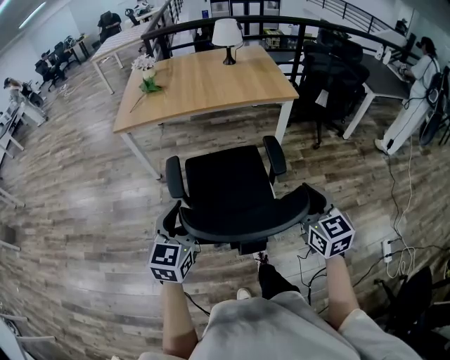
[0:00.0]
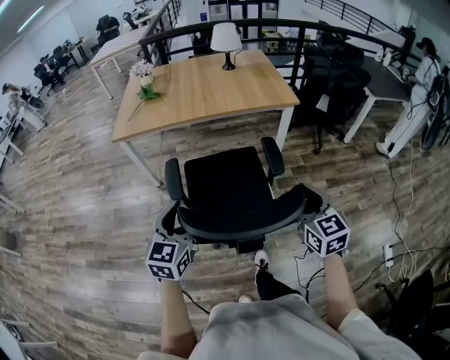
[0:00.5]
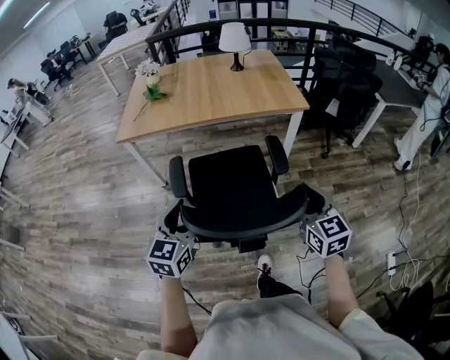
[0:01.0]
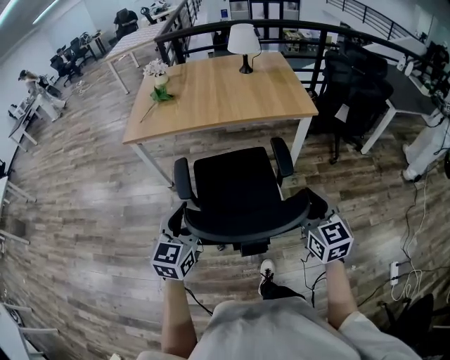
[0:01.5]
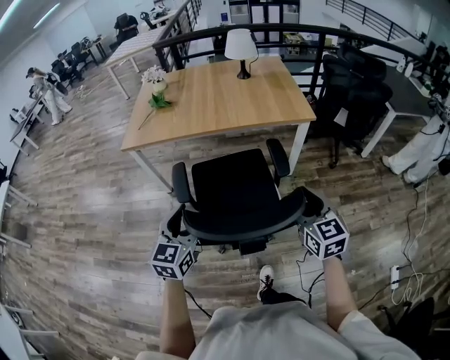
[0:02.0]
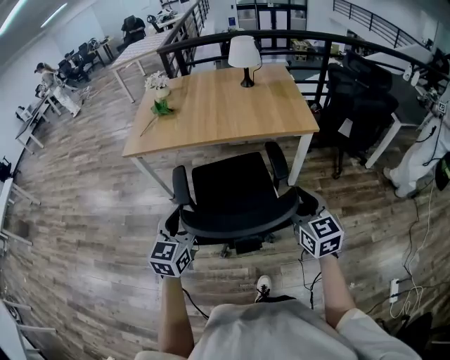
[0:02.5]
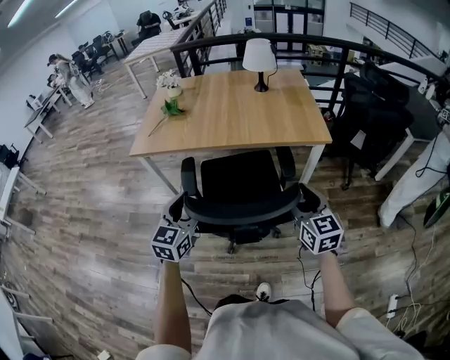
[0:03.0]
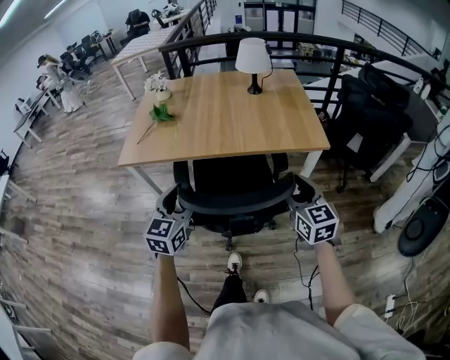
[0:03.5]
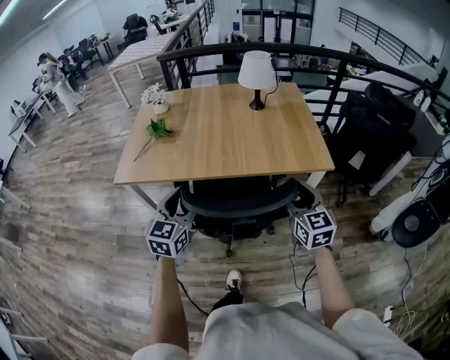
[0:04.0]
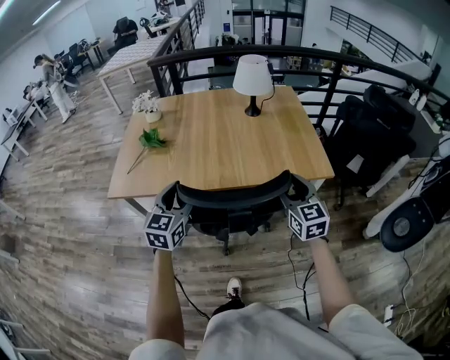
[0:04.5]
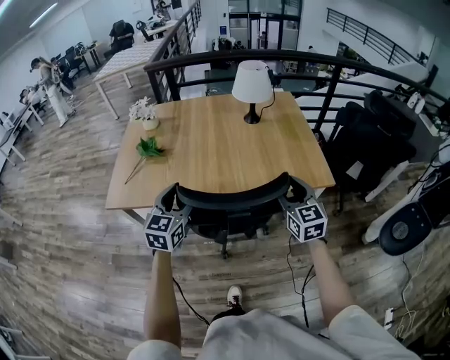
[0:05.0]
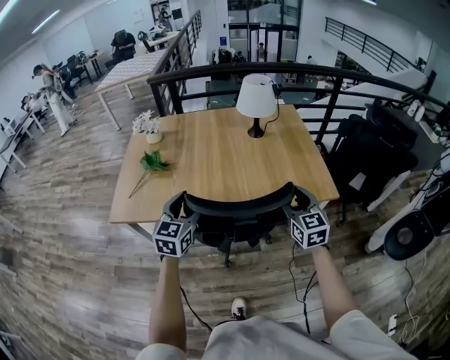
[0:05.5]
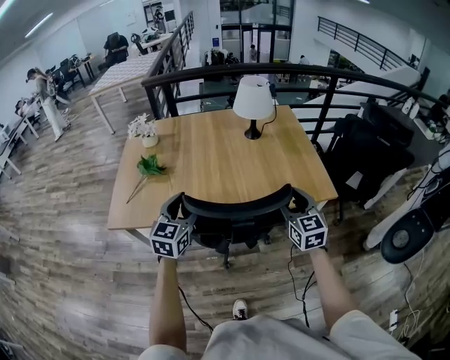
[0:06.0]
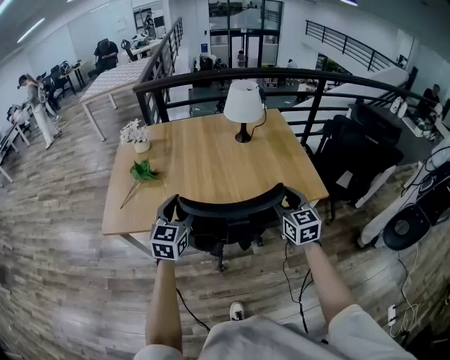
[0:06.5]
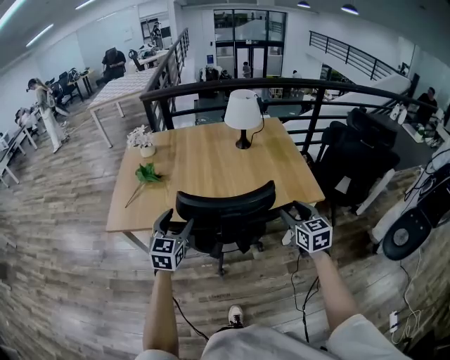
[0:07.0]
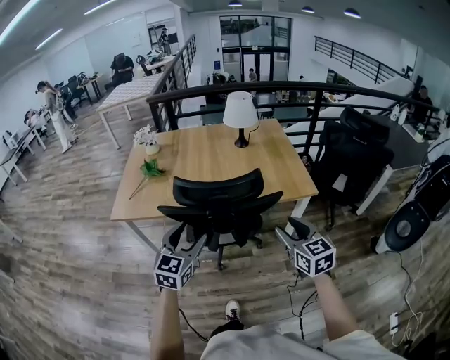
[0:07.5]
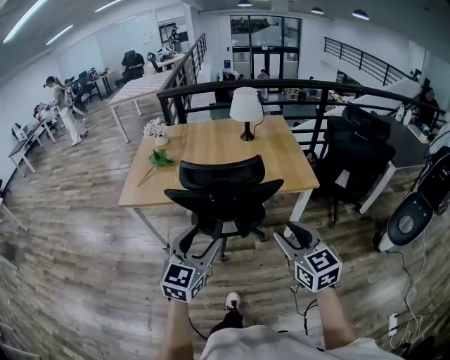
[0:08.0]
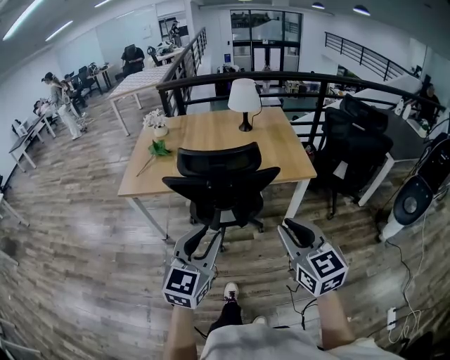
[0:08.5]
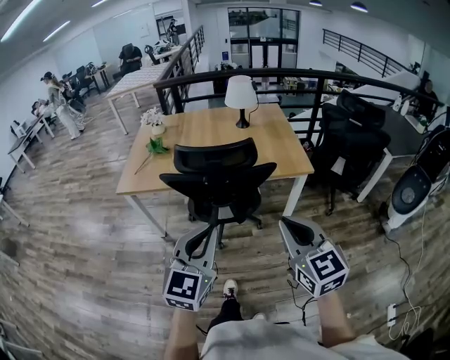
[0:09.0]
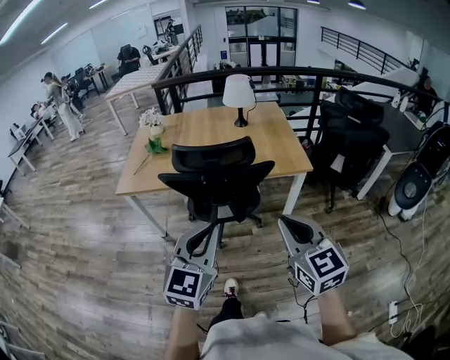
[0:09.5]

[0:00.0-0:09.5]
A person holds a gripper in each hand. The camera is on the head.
0:00.0 to 0:02.0: Both grippers move forward, approximately 15 cm.
0:02.0 to 0:04.0: The grippers both shift forward by some 30 cm.
0:04.0 to 0:05.5: The grippers both shift forward by approximately 15 cm.
0:05.5 to 0:07.5: The grippers both shift backward by roughly 20 cm.
0:07.5 to 0:09.5: The right gripper moves backward and upward, approximately 20 cm, and closes its fingers. The left gripper moves backward, to the right and upward, roughly 25 cm, and closes its fingers.

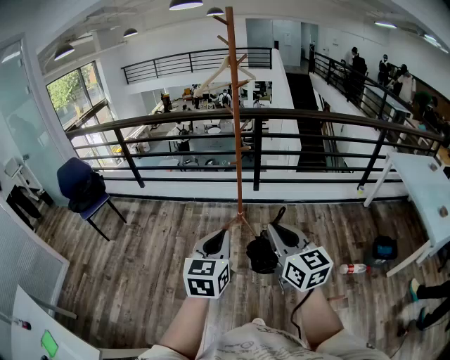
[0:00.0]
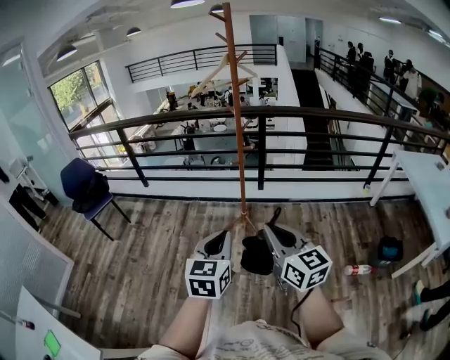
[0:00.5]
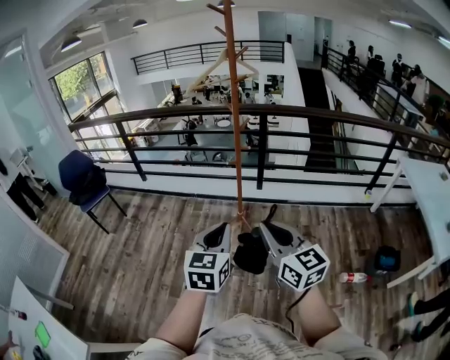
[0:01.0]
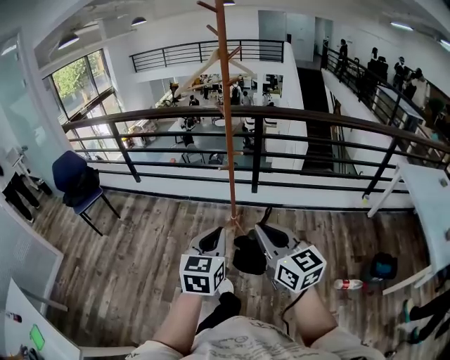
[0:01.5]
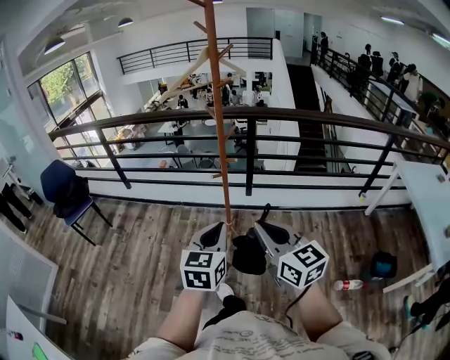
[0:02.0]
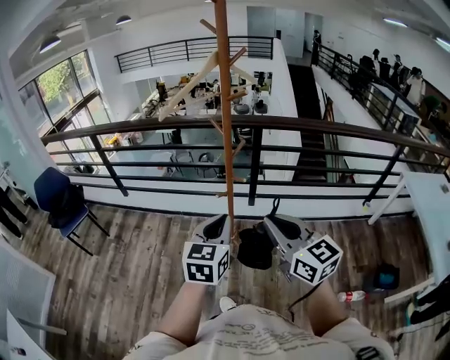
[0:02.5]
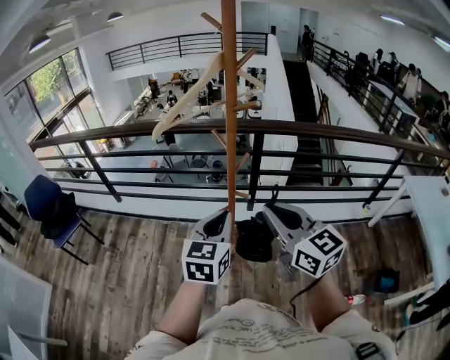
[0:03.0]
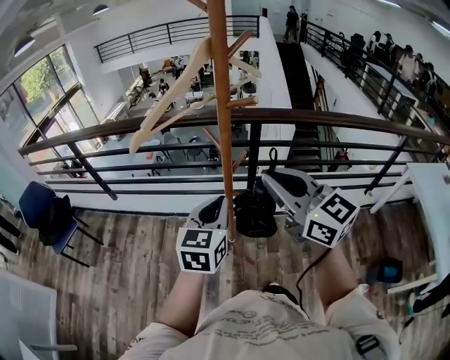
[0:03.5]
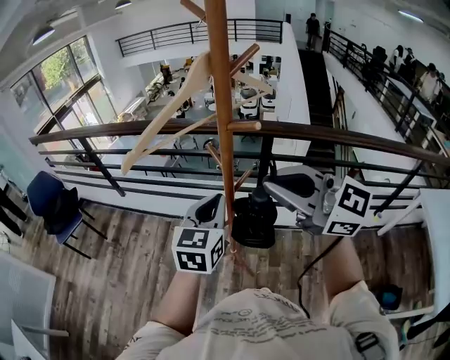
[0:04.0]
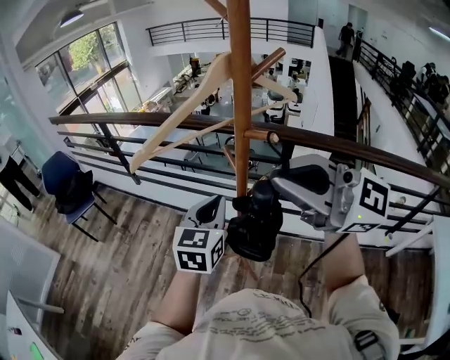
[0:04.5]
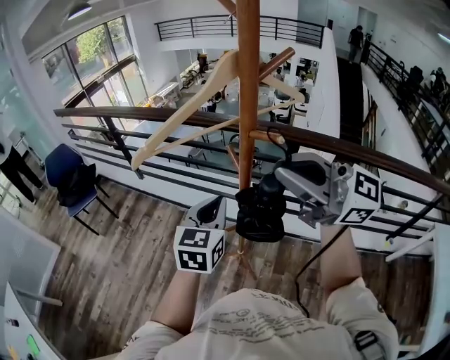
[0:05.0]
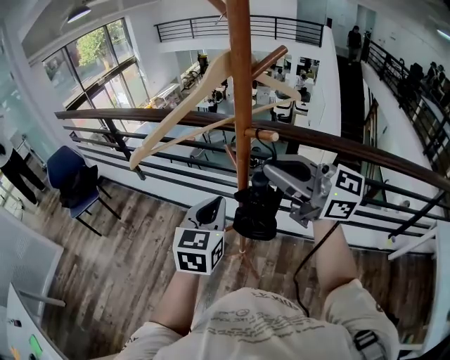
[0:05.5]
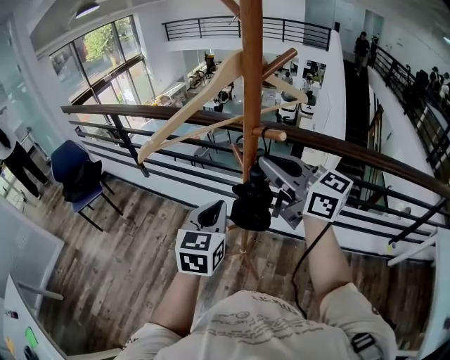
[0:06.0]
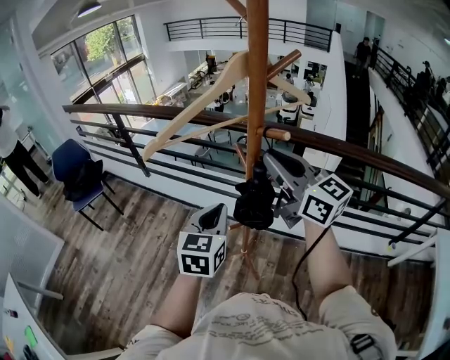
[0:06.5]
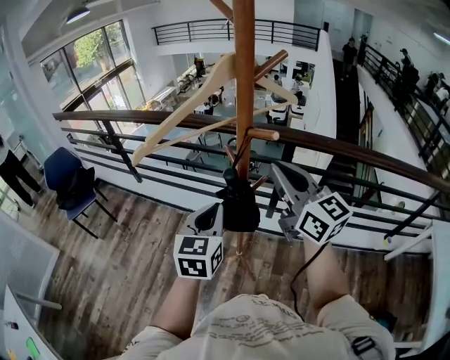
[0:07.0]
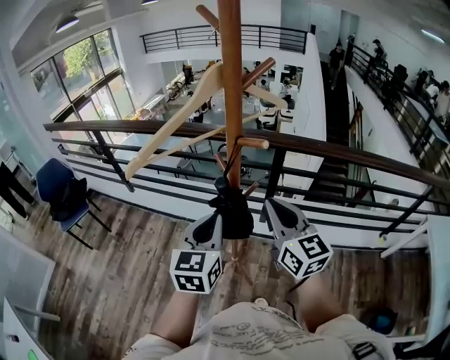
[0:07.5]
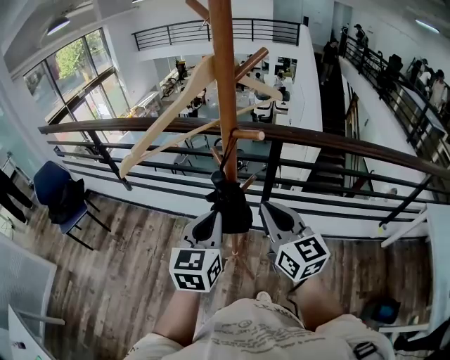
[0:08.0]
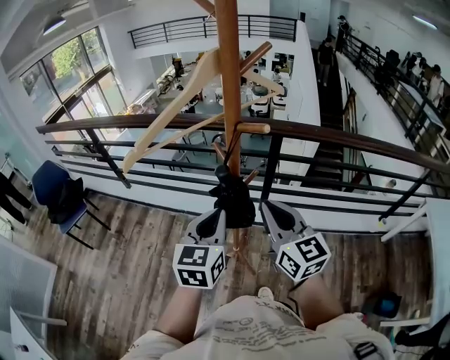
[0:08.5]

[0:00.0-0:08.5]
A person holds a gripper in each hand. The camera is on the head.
0:00.0 to 0:02.0: Both grippers travel together forward and to the right, approximately 25 cm.
0:02.0 to 0:04.0: Both grippers move forward, roughly 40 cm. The right gripper changes its angle by some 40 degrees.
0:04.0 to 0:06.5: The left gripper ends up some 5 cm from where it was. The right gripper is displaced forward by some 10 cm.
0:06.5 to 0:08.5: The right gripper goes roughly 15 cm downward and backward, and turns by approximately 30 degrees.

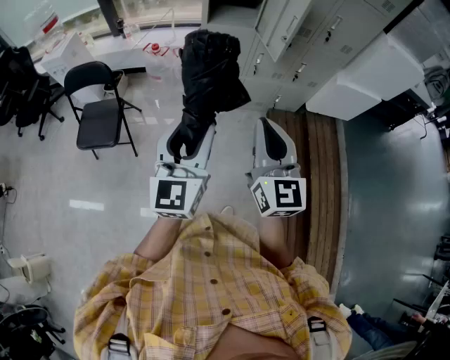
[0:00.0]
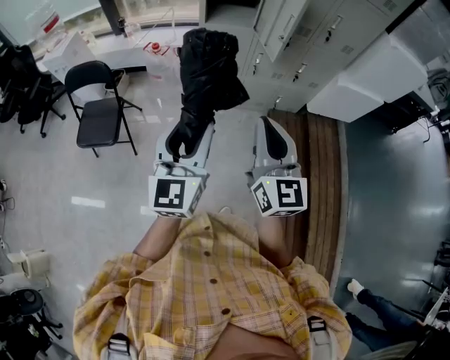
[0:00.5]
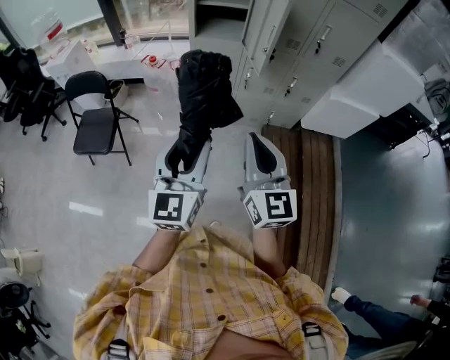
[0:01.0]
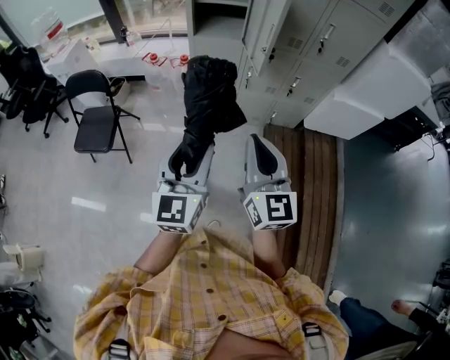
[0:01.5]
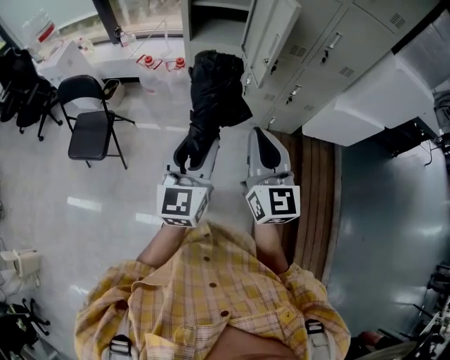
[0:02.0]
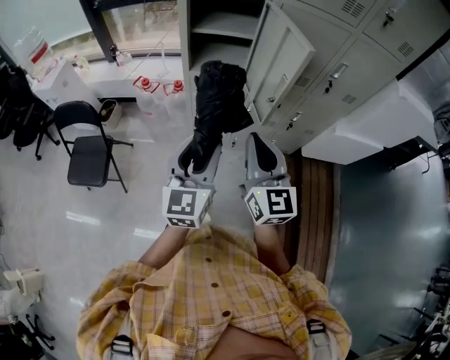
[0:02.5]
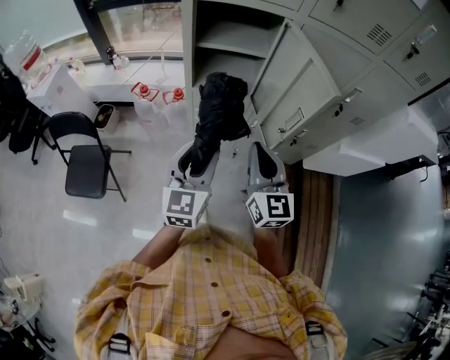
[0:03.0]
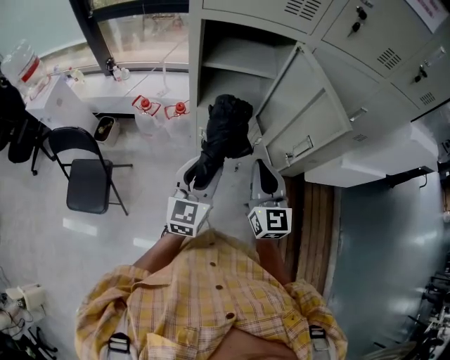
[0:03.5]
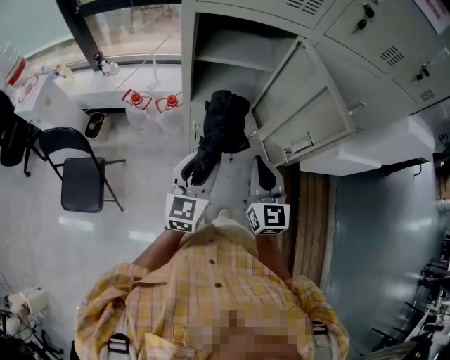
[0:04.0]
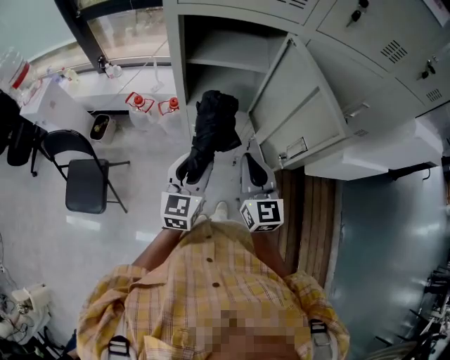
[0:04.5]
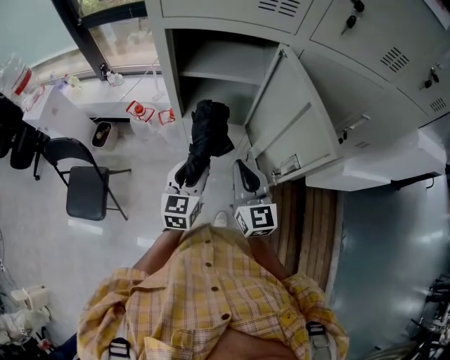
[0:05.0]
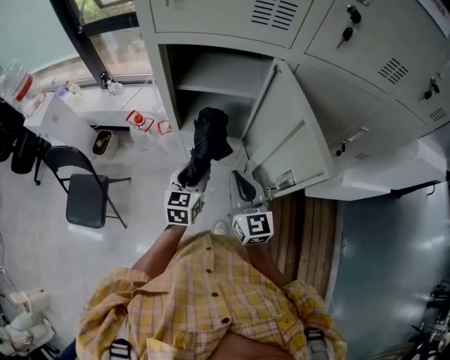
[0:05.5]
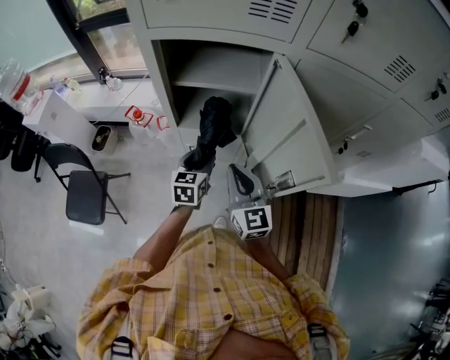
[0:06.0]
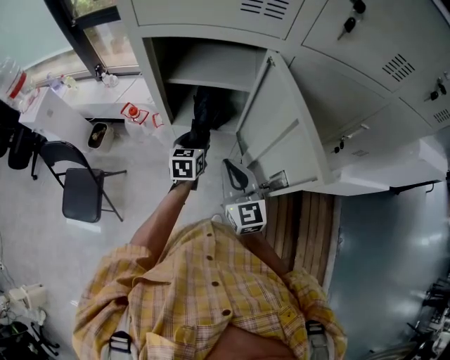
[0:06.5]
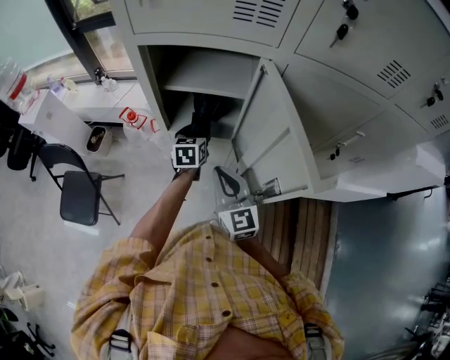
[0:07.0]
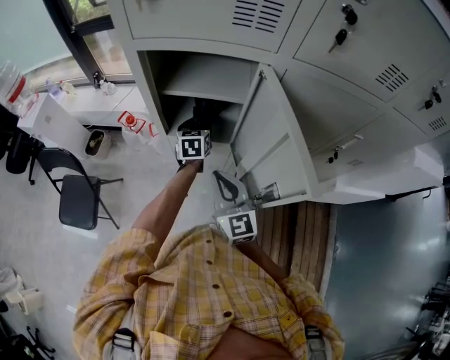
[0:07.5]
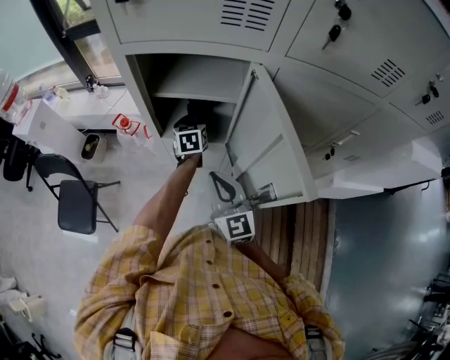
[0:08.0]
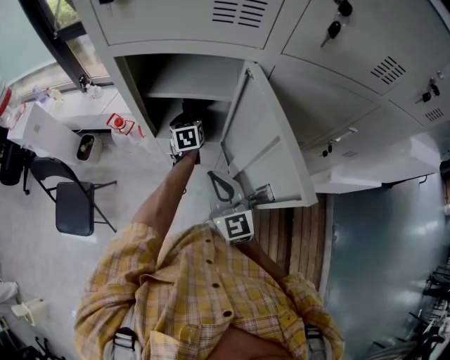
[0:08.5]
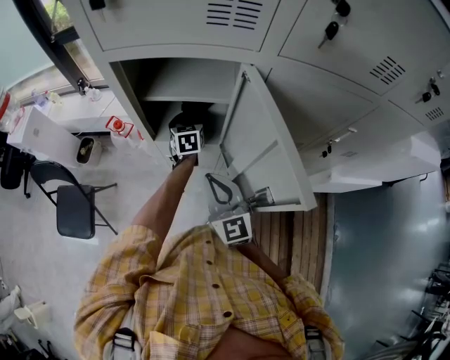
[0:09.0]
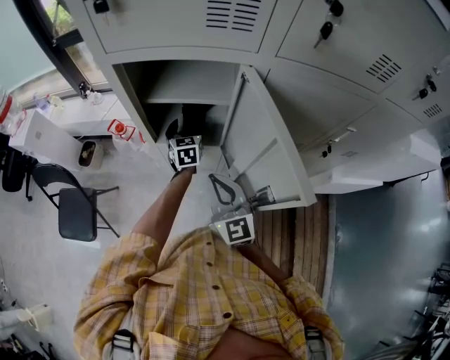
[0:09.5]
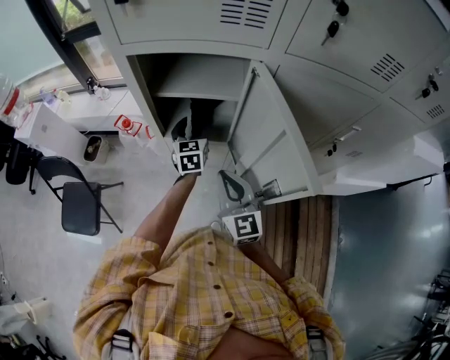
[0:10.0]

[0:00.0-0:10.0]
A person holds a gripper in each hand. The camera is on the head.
0:00.0 to 0:02.0: The left gripper travels to the right and forward by roughly 20 cm. Meanwhile the right gripper moves forward and to the right, about 20 cm.
0:02.0 to 0:04.0: The two grippers go roughly 30 cm forward.
0:04.0 to 0:06.0: The left gripper goes roughly 20 cm forward and downward, and swivels some 20 degrees; the right gripper heads forward, covering approximately 10 cm.
0:06.0 to 0:08.0: The left gripper goes approximately 20 cm forward.
0:08.0 to 0:10.0: The left gripper changes place by about 5 cm.
